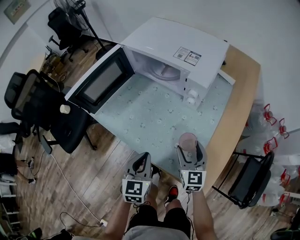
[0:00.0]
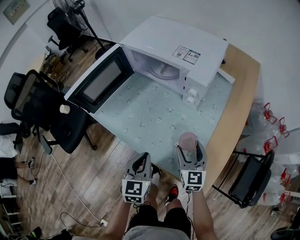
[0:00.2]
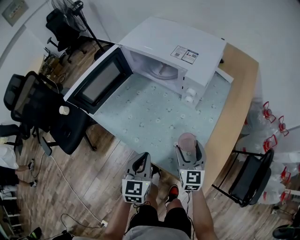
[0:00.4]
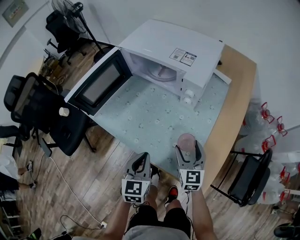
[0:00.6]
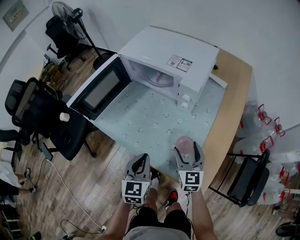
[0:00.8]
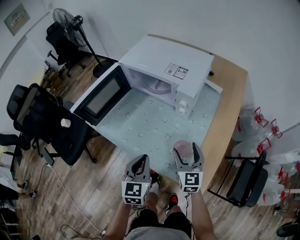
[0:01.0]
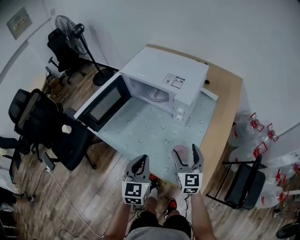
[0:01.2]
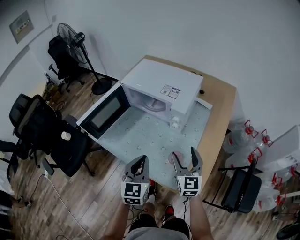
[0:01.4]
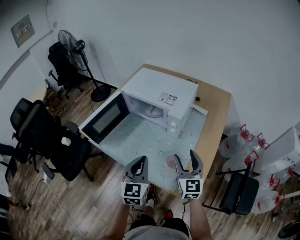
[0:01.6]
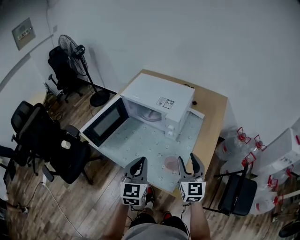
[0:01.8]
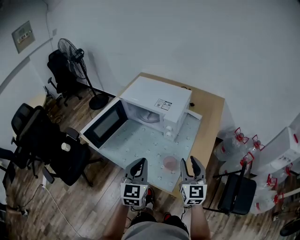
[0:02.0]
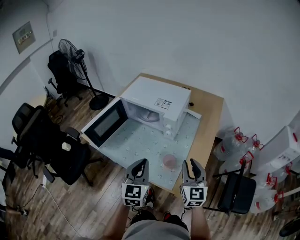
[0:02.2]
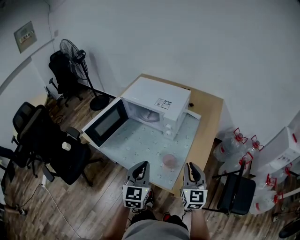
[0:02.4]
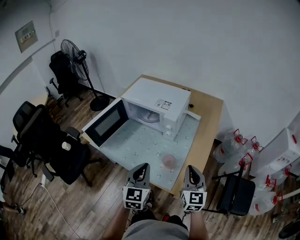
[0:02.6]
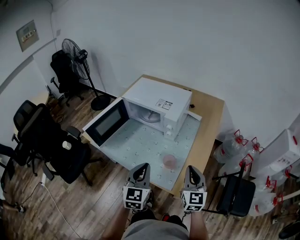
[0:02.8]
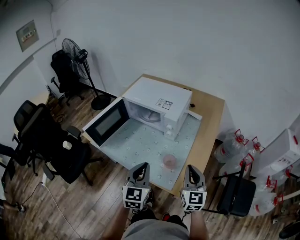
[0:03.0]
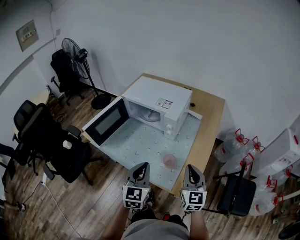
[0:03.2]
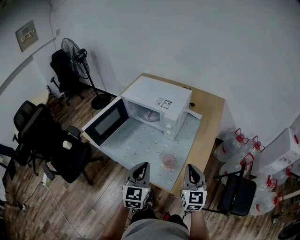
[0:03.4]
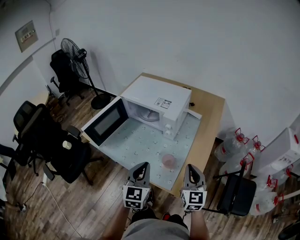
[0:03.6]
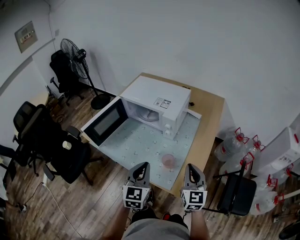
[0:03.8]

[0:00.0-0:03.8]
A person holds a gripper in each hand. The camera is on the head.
0:00.0 to 0:01.2: The two grippers go some 10 cm upward.
0:01.2 to 0:02.6: The right gripper shifts about 15 cm upward, backward and to the right, and closes its fingers, while the left gripper goes approximately 10 cm upward and backward.
0:02.6 to 0:03.8: The grippers stay close to where they were, moving slightly.

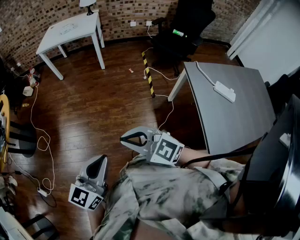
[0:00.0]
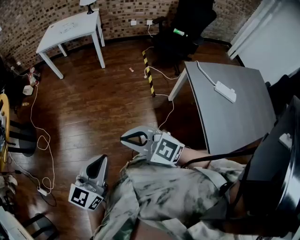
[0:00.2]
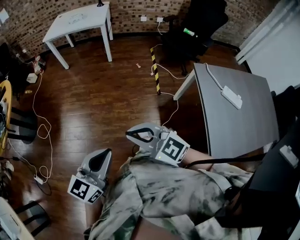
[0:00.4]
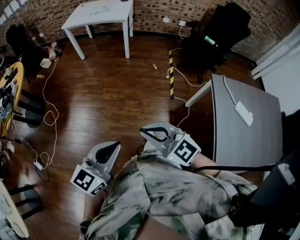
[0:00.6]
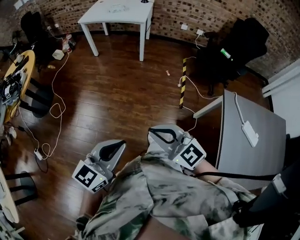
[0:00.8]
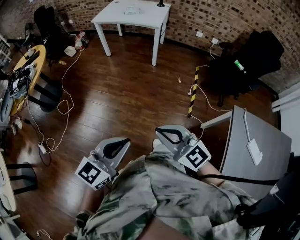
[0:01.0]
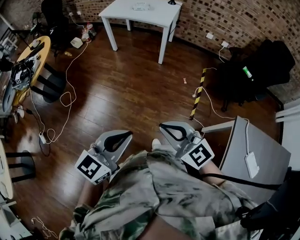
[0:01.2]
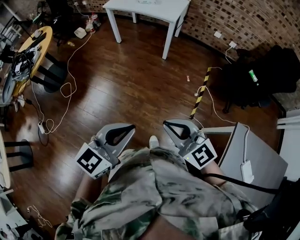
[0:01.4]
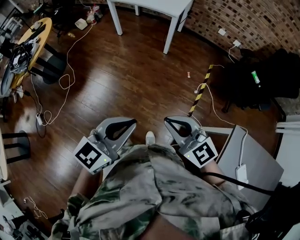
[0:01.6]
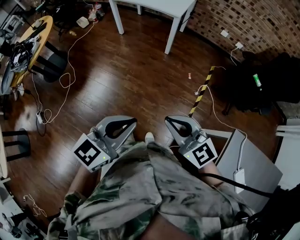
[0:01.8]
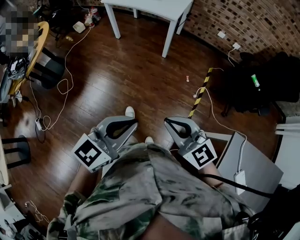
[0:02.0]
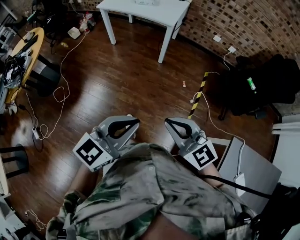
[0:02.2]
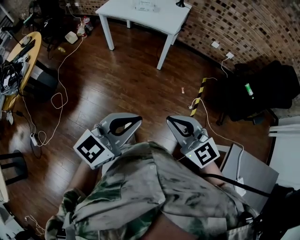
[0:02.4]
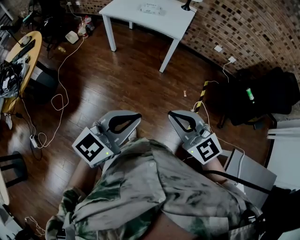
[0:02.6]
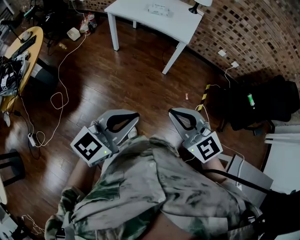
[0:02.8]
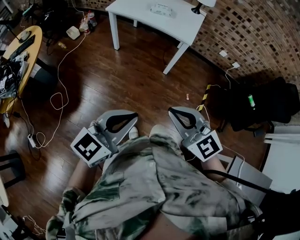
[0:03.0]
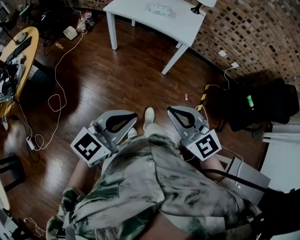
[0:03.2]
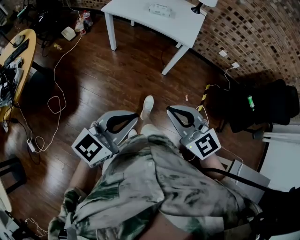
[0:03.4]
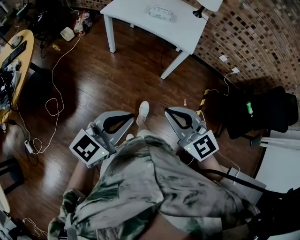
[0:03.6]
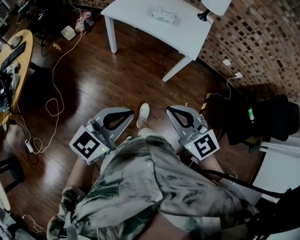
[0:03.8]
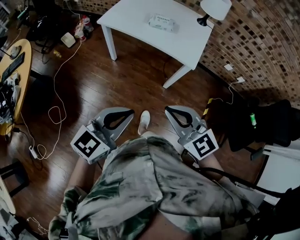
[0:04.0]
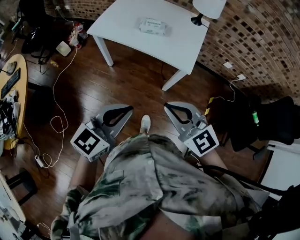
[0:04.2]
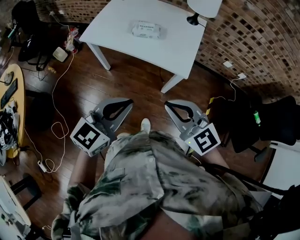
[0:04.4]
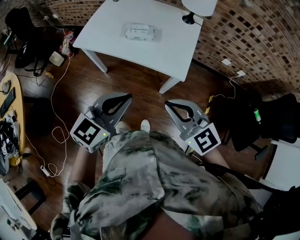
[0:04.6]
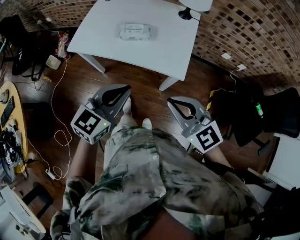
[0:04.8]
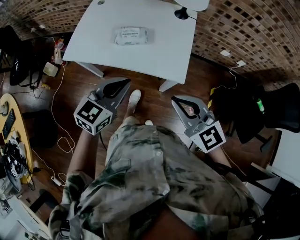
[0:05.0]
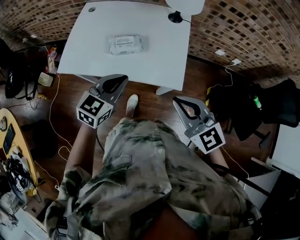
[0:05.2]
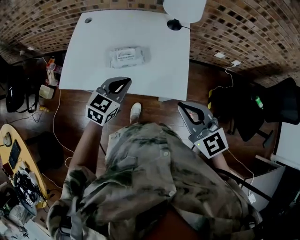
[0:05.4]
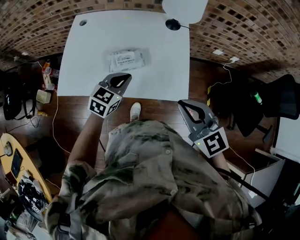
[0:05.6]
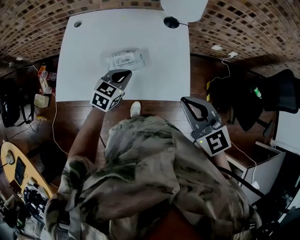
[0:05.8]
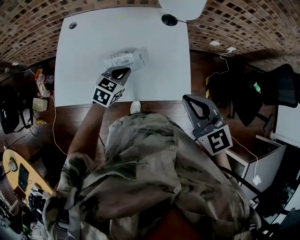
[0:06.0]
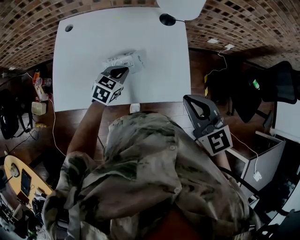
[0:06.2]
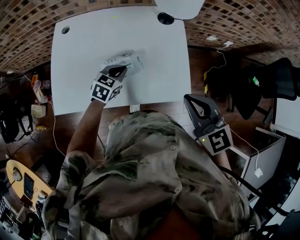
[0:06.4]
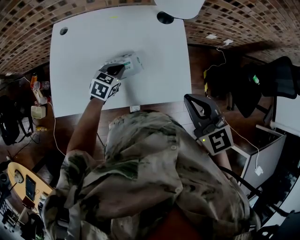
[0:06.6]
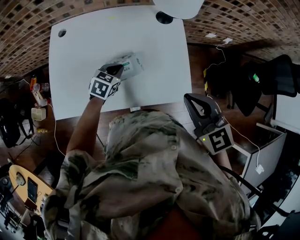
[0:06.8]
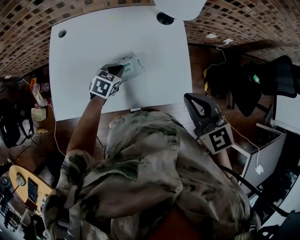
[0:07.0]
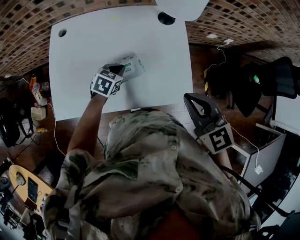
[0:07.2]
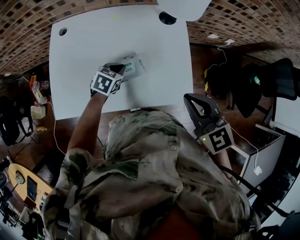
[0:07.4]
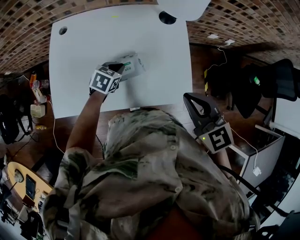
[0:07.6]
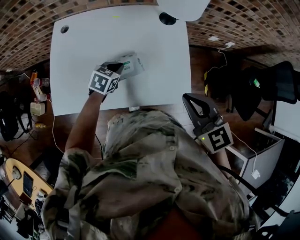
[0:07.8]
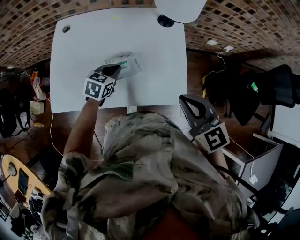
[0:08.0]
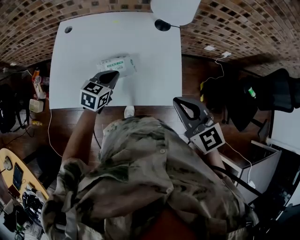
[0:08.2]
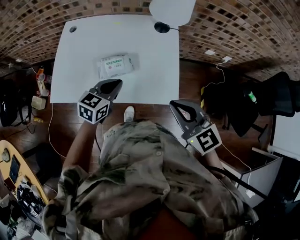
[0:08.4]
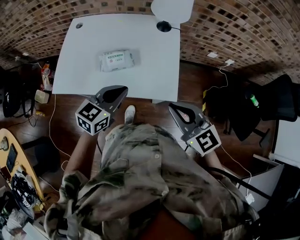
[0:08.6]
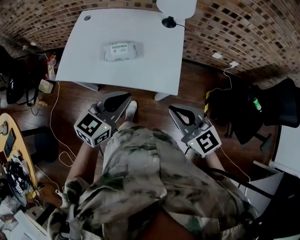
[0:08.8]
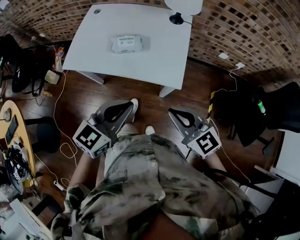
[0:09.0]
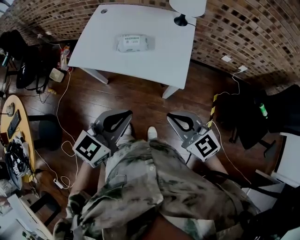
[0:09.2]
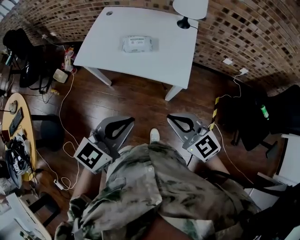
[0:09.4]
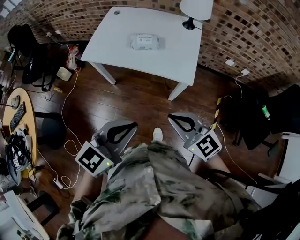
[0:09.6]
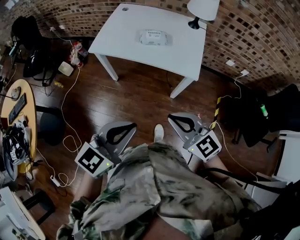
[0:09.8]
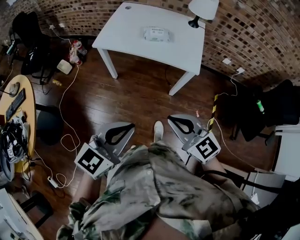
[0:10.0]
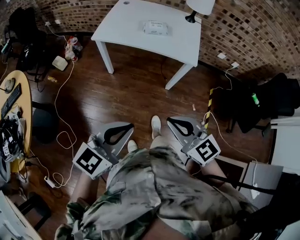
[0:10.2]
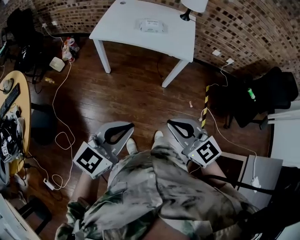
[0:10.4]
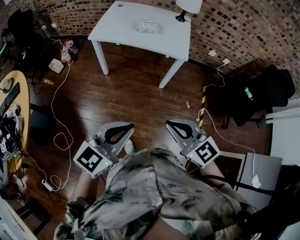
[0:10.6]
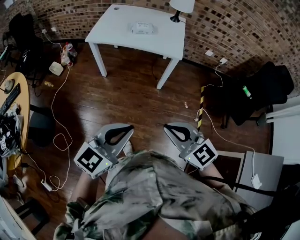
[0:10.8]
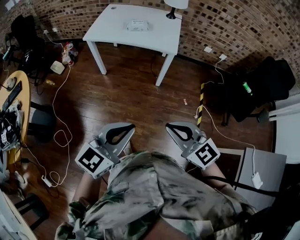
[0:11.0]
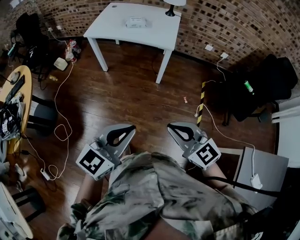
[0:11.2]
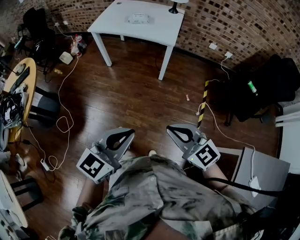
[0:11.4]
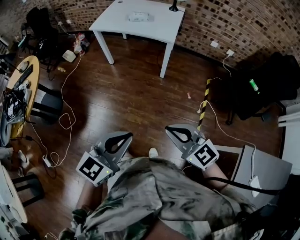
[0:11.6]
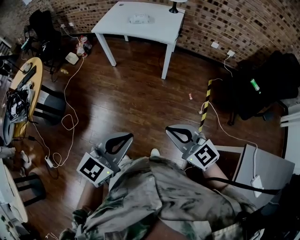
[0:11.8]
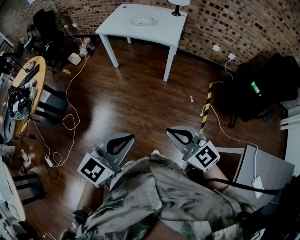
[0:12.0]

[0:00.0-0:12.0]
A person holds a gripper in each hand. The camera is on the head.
0:00.0 to 0:01.6: The two grippers go roughly 30 cm forward and to the right.
0:01.6 to 0:03.0: Both grippers move forward and to the left, about 30 cm.
0:03.0 to 0:04.4: The two grippers go approximately 40 cm forward.
0:04.4 to 0:06.0: The right gripper shifts by some 25 cm, and swivels some 30 degrees. The left gripper moves roughly 50 cm, and swivels roughly 30 degrees.
0:06.0 to 0:07.6: The left gripper moves downward and forward, some 10 cm.
0:07.6 to 0:09.0: The right gripper travels backward by roughly 20 cm, and rotates some 30 degrees, while the left gripper travels backward and upward by roughly 40 cm, and tips its fingers upward by roughly 30 degrees.
0:09.0 to 0:10.4: The two grippers go about 35 cm backward and to the left.
0:10.4 to 0:12.0: Both grippers travel together backward and to the right, some 35 cm.

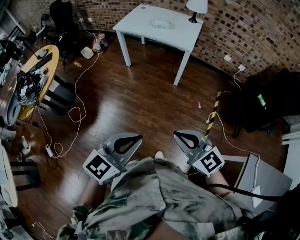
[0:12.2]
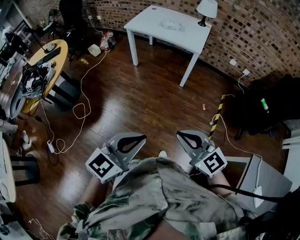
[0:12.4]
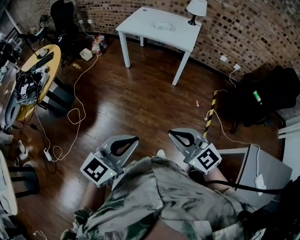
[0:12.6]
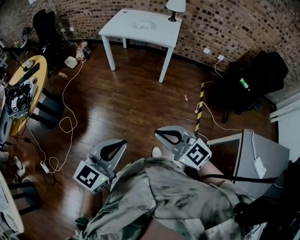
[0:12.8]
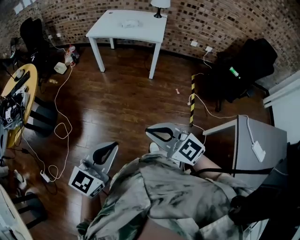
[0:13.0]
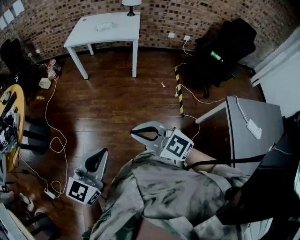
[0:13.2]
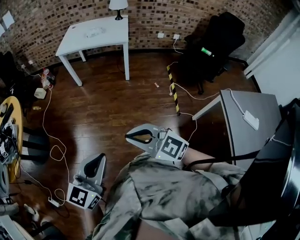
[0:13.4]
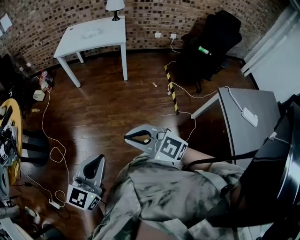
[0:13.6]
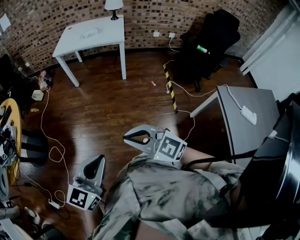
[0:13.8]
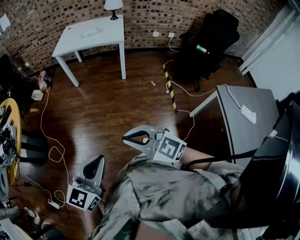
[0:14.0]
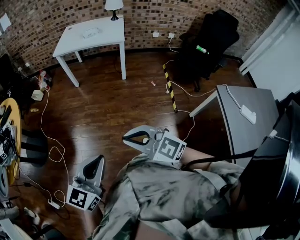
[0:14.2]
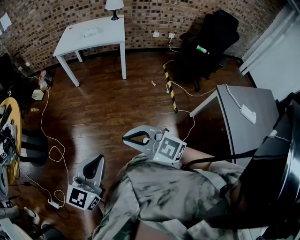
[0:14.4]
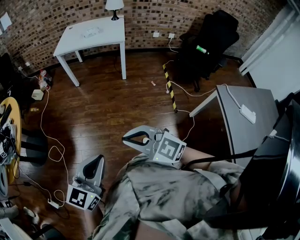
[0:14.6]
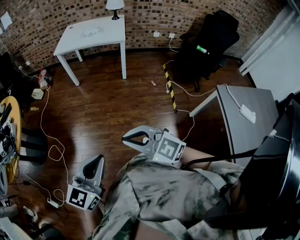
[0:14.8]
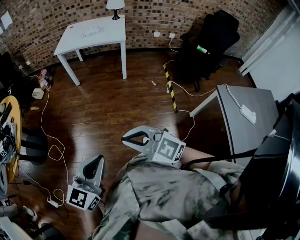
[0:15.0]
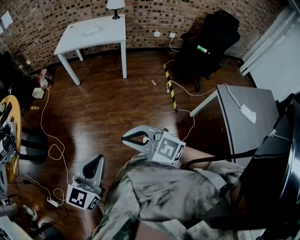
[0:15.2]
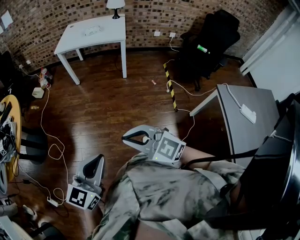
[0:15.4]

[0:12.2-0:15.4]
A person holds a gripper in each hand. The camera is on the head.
0:12.2 to 0:13.8: The left gripper is displaced backward and to the left by roughly 20 cm. Meanwhile the right gripper travels to the left and backward by approximately 25 cm.
0:13.8 to 0:15.4: The grippers stay close to where they were, moving slightly.

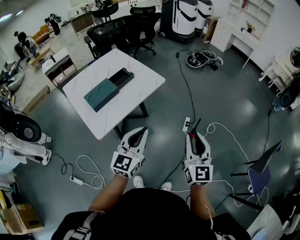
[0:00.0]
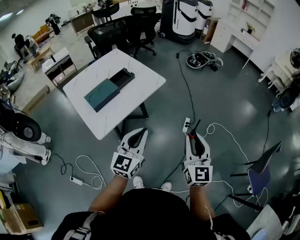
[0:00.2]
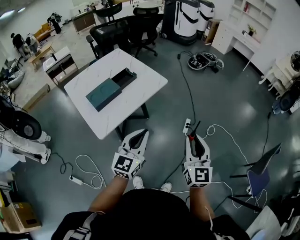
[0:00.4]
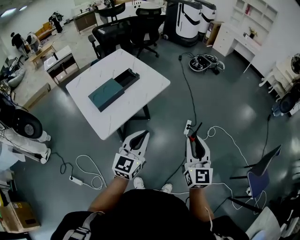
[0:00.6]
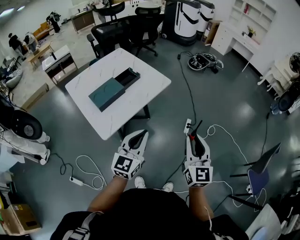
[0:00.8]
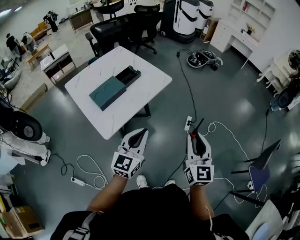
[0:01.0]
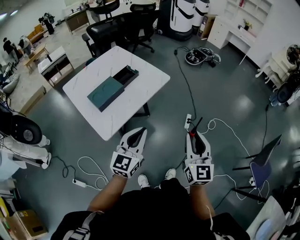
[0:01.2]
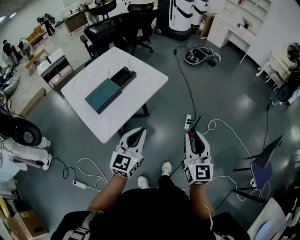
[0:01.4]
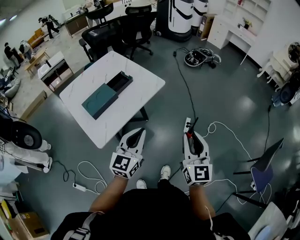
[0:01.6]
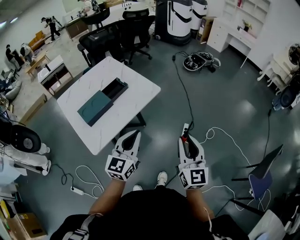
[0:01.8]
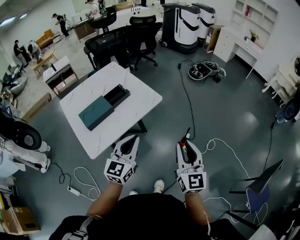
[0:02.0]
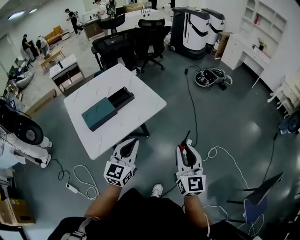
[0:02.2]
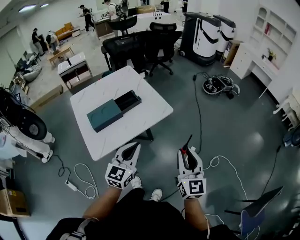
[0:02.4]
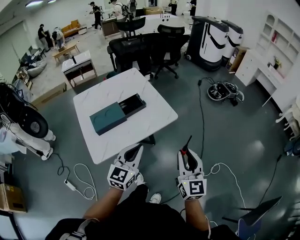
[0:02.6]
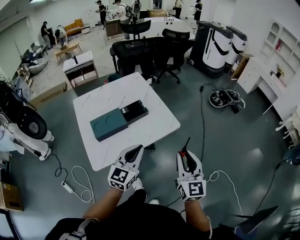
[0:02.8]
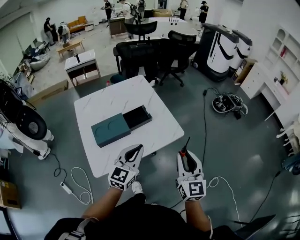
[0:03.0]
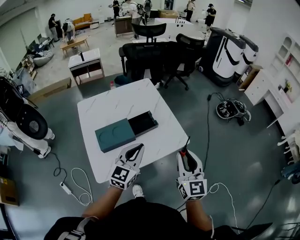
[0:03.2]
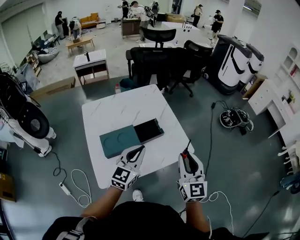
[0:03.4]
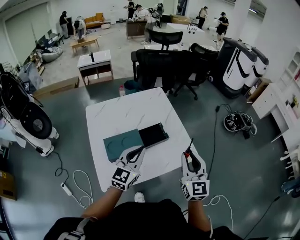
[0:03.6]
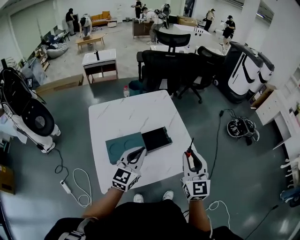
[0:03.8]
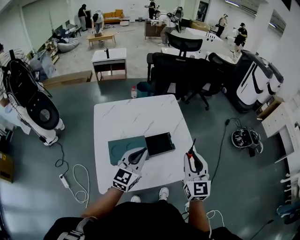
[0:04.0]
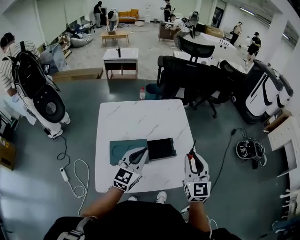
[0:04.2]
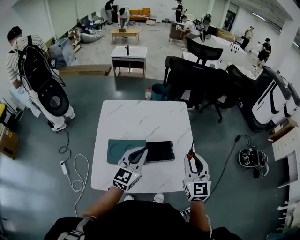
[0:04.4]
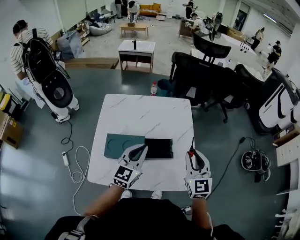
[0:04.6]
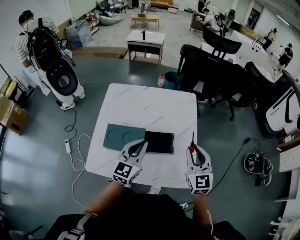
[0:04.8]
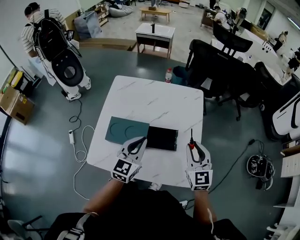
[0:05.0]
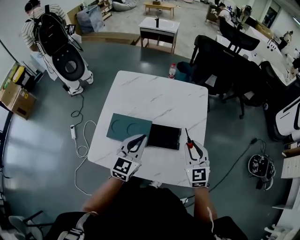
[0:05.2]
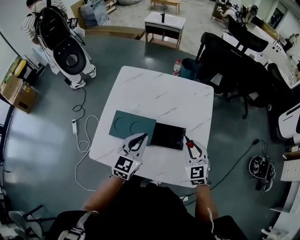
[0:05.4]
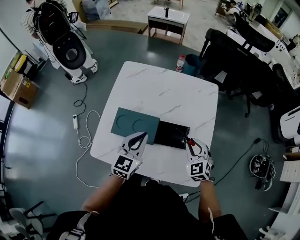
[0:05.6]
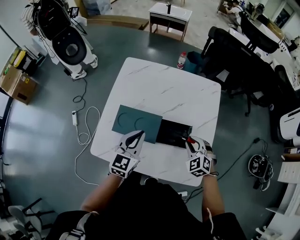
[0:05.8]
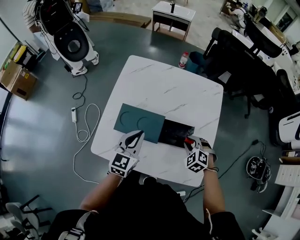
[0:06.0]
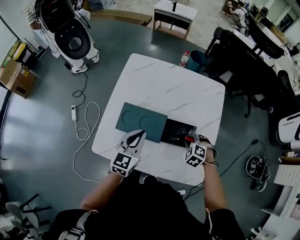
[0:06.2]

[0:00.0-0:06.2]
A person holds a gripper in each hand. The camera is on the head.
0:00.0 to 0:01.6: The left gripper ends up roughly 5 cm from where it was, while the right gripper moves roughly 5 cm.
0:01.6 to 0:03.2: The two grippers go about 25 cm forward. The right gripper swivels about 30 degrees.
0:03.2 to 0:04.6: The left gripper shifts by some 20 cm, and rotates roughly 30 degrees; the right gripper moves approximately 25 cm, and turns by roughly 30 degrees.
0:04.6 to 0:06.2: The right gripper travels downward by approximately 30 cm, and tilts its fingers approximately 60 degrees downward. Meanwhile the left gripper heads downward and to the left, covering approximately 15 cm, and rotates approximately 20 degrees.
